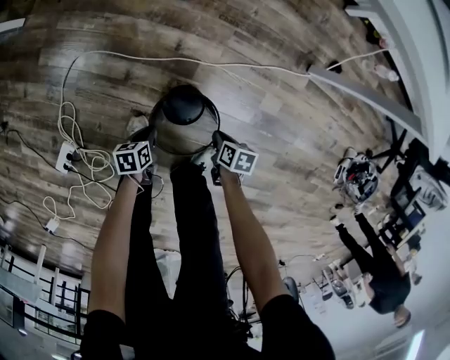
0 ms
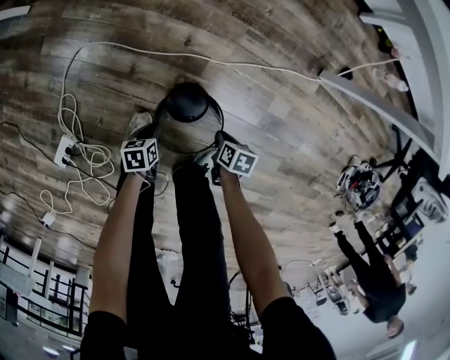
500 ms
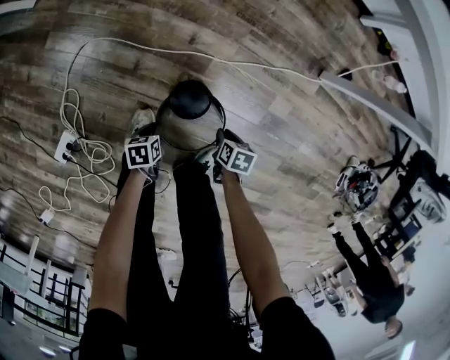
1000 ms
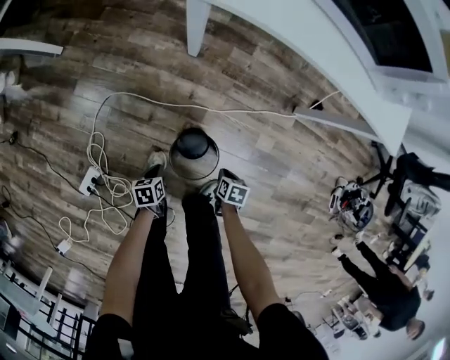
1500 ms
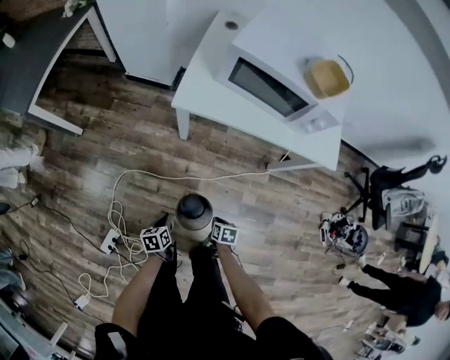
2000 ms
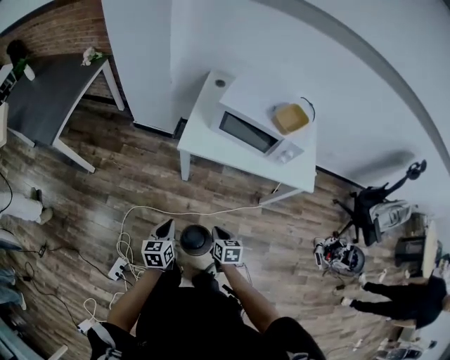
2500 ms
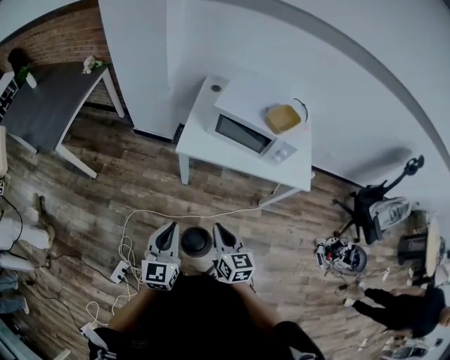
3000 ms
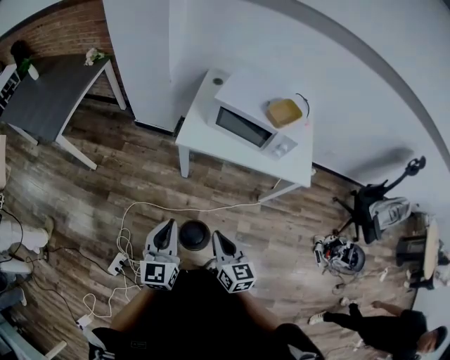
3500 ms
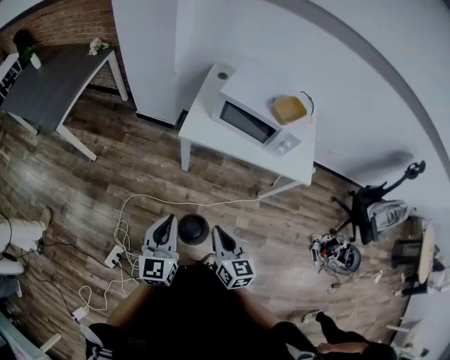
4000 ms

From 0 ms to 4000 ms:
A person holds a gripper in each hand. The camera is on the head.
From 0 ms to 2000 ms: The two grippers go about 35 cm upward.
From 2000 ms to 4000 ms: The two grippers go about 40 cm upward. The right gripper angles its fingers upward, by approximately 50 degrees. The left gripper angles its fingers upward, by about 40 degrees.

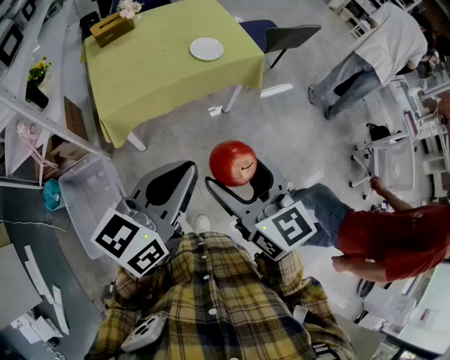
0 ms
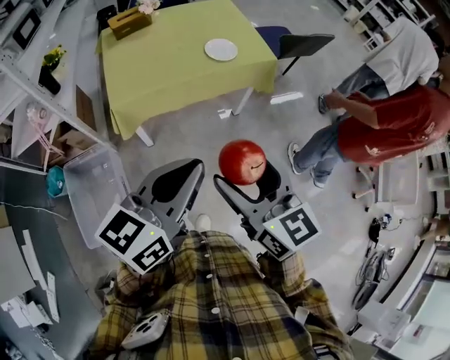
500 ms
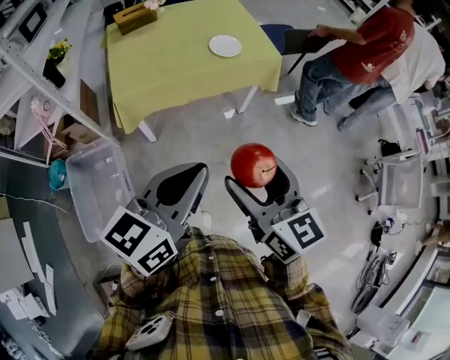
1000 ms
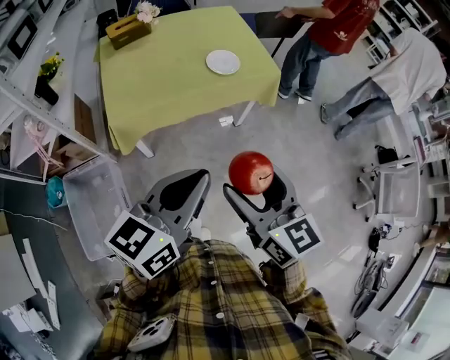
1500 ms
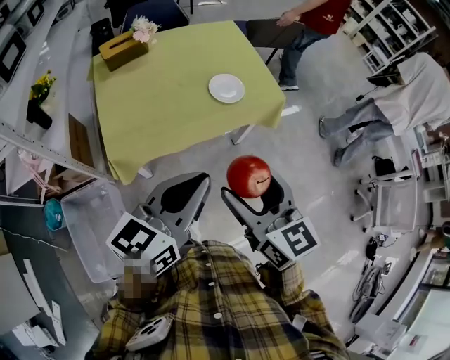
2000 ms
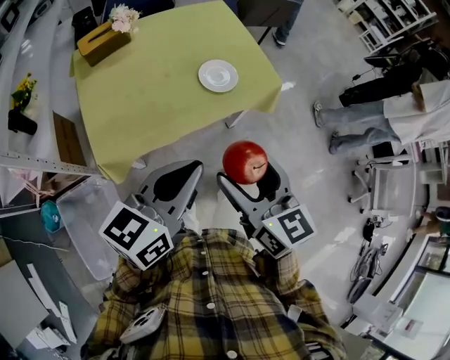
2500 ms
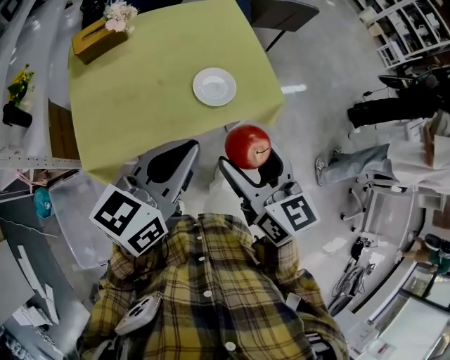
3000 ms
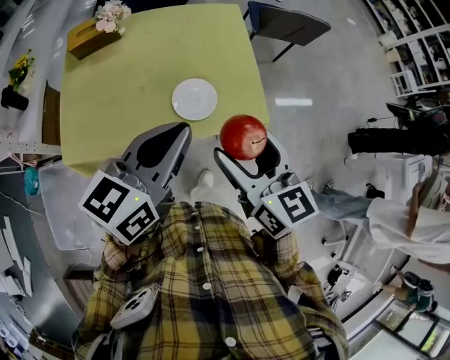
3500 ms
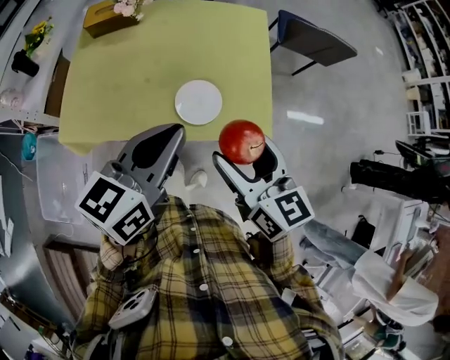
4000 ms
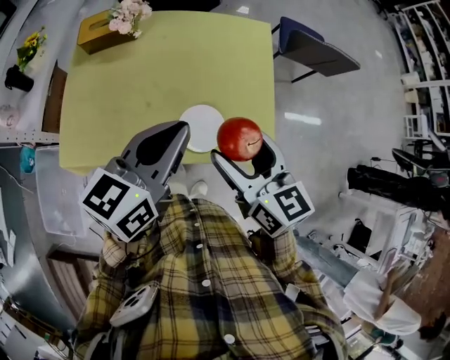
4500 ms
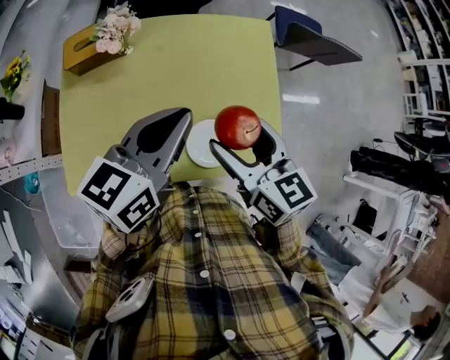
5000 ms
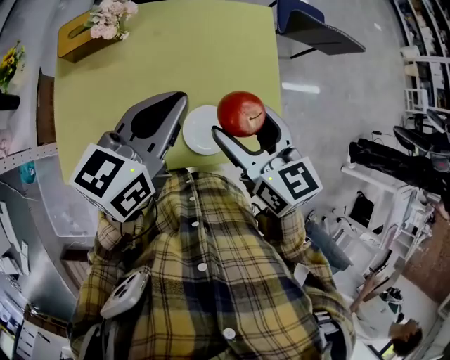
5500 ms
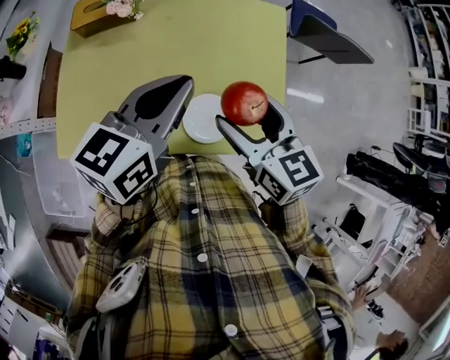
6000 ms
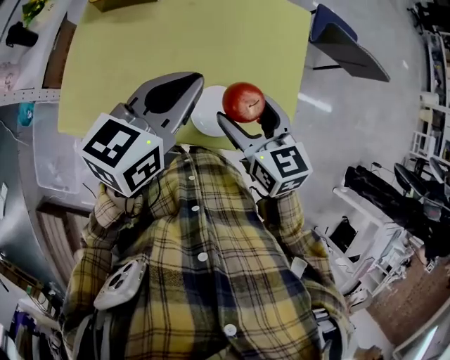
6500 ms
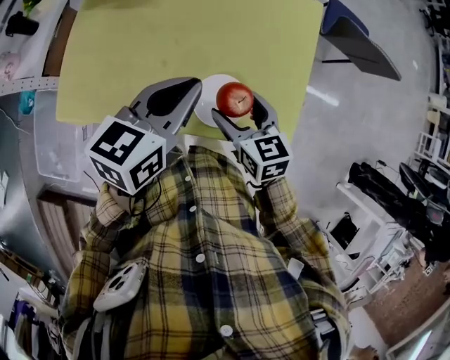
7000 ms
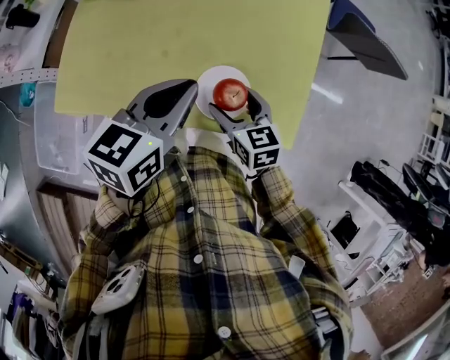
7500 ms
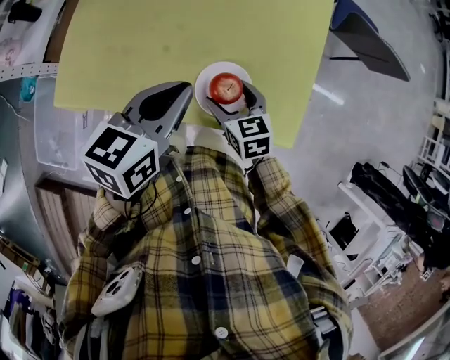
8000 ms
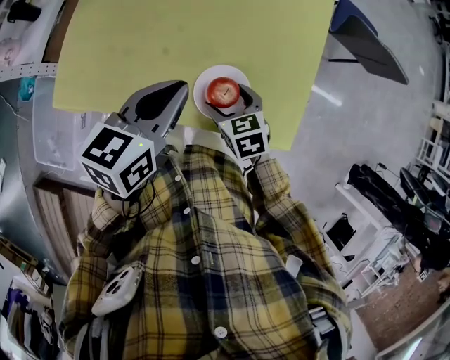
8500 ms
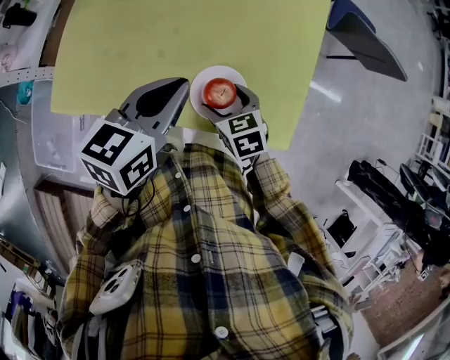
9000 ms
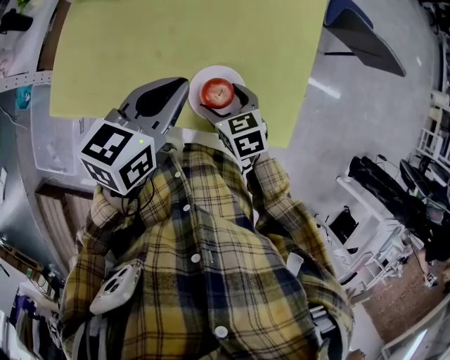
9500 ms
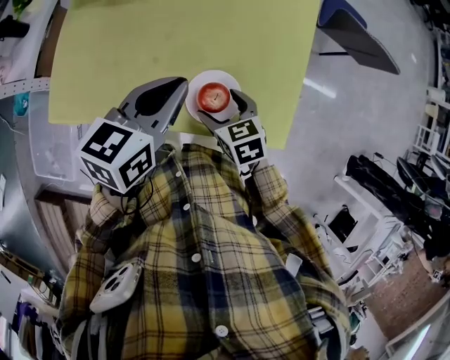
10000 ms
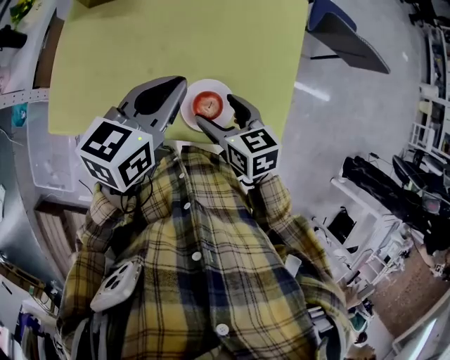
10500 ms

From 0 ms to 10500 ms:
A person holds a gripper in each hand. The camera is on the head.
From 0 ms to 2000 ms: The two grippers go approximately 15 cm forward.
From 2000 ms to 4000 ms: The left gripper ends up about 35 cm from where it was, and turns by some 30 degrees. The right gripper ends up some 35 cm from where it was, and turns by some 20 degrees.
From 4000 ms to 6500 ms: The left gripper goes about 20 cm forward. The right gripper travels forward and downward by some 20 cm.
From 6500 ms to 8500 ms: The right gripper moves downward, some 20 cm, and changes its angle by some 20 degrees, while the left gripper goes roughly 10 cm downward.
From 8500 ms to 10500 ms: The right gripper heads upward, covering roughly 10 cm. Meanwhile the left gripper shifts by roughly 5 cm.

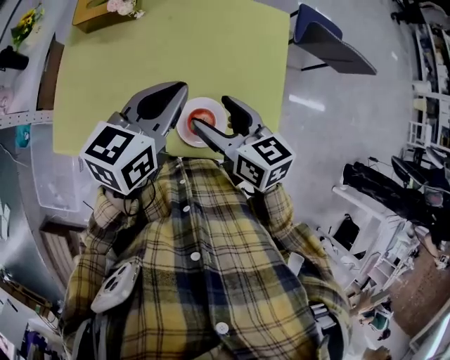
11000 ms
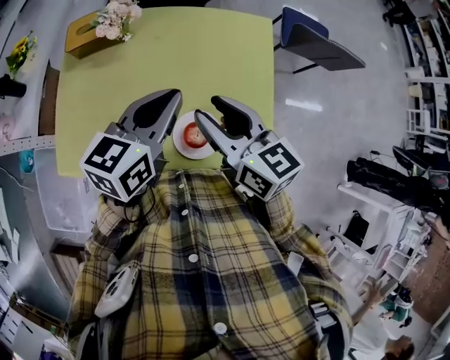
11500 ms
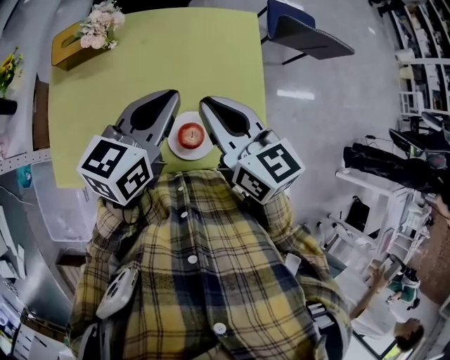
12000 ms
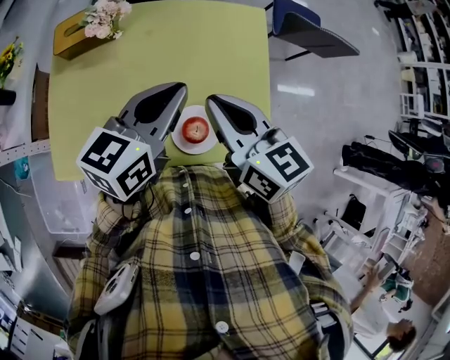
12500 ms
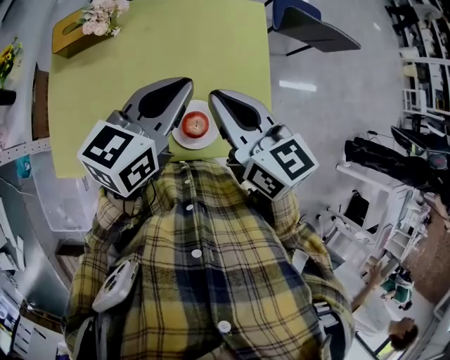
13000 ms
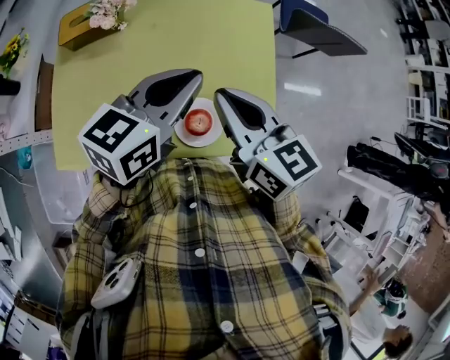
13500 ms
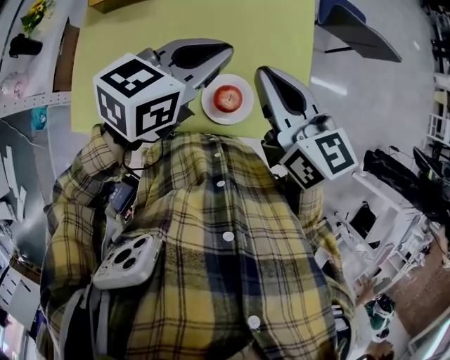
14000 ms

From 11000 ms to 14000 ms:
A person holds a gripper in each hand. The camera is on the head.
From 11000 ms to 12500 ms: The right gripper travels upward by about 10 cm, and closes its fingers.
From 12500 ms to 14000 ms: There are only small adjustments of the grippers.

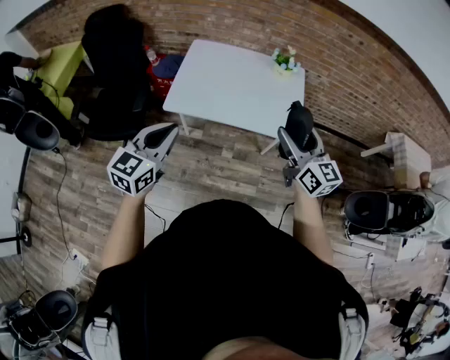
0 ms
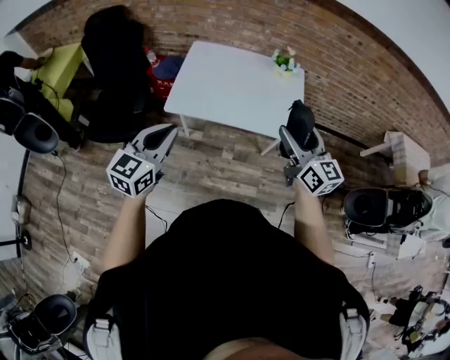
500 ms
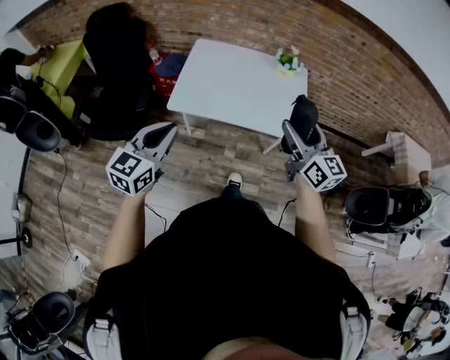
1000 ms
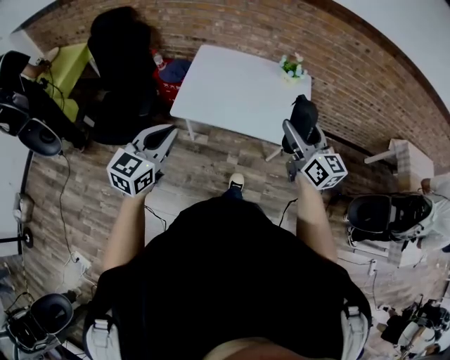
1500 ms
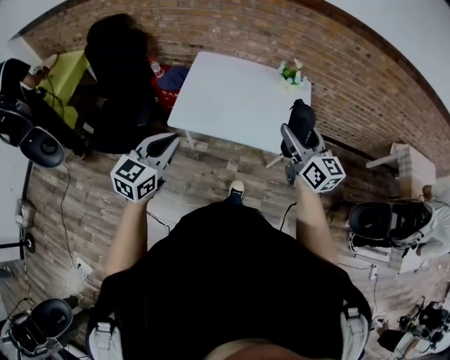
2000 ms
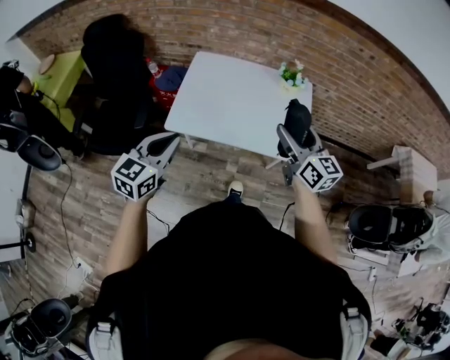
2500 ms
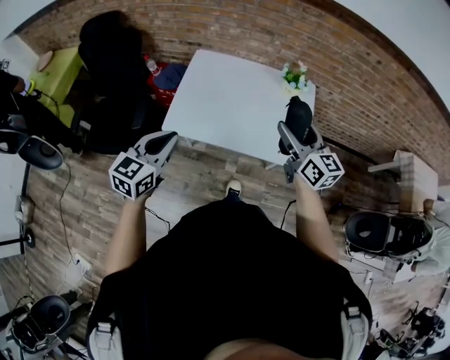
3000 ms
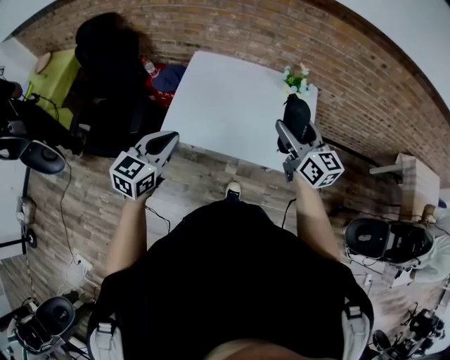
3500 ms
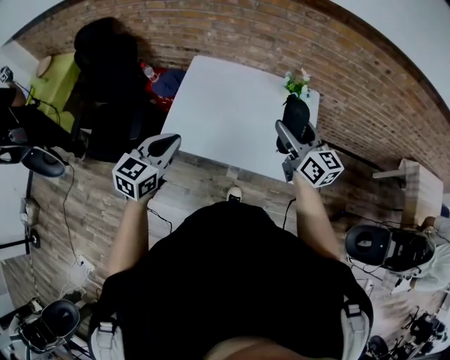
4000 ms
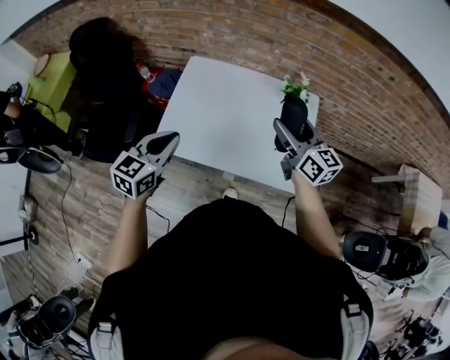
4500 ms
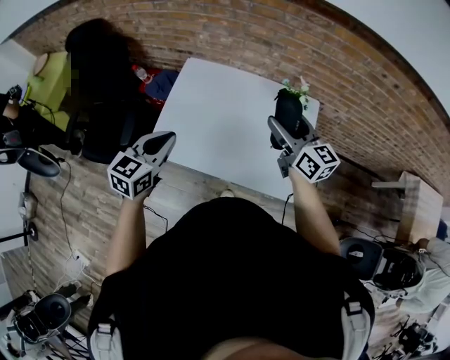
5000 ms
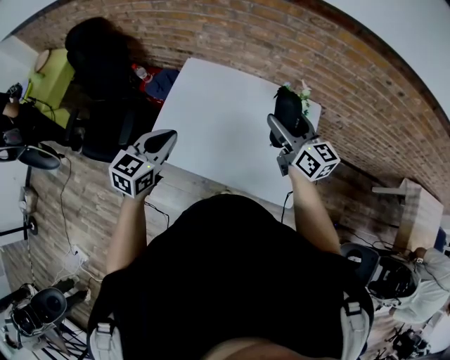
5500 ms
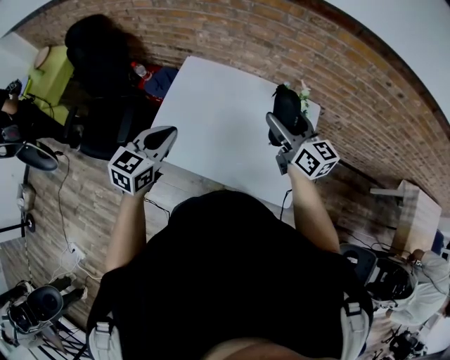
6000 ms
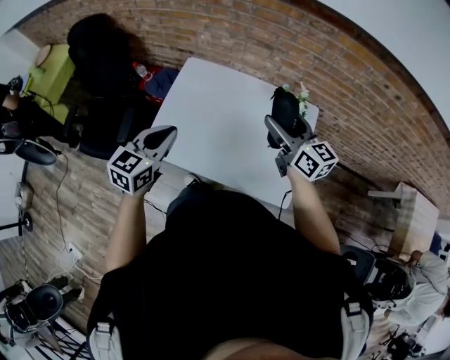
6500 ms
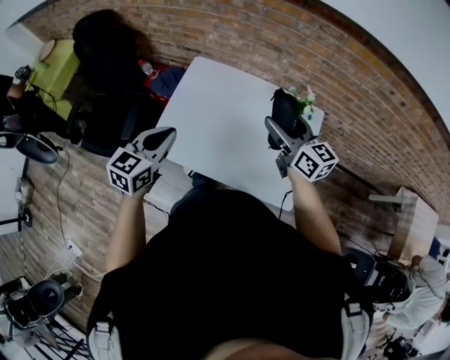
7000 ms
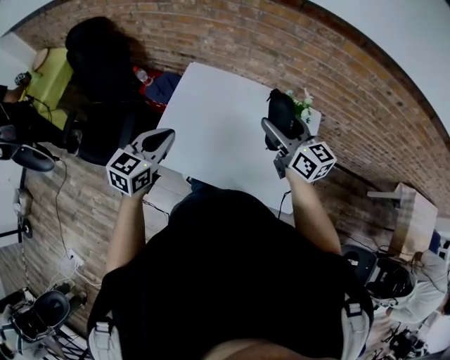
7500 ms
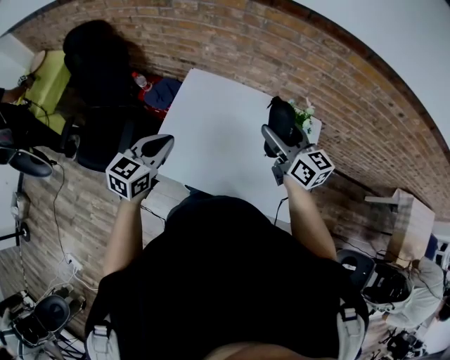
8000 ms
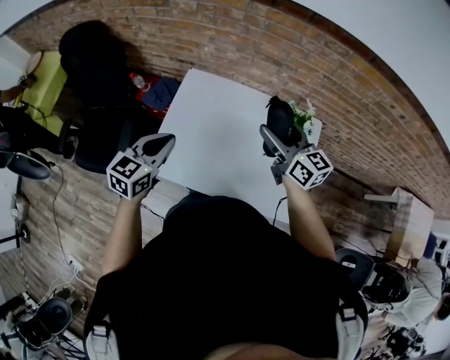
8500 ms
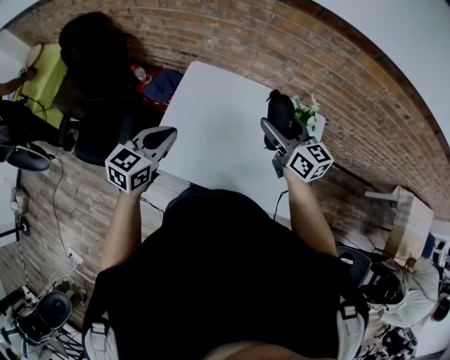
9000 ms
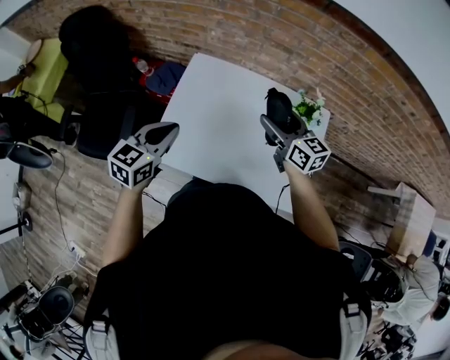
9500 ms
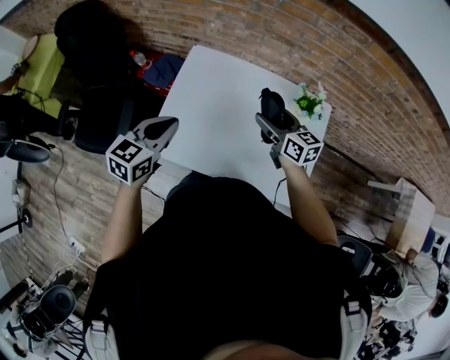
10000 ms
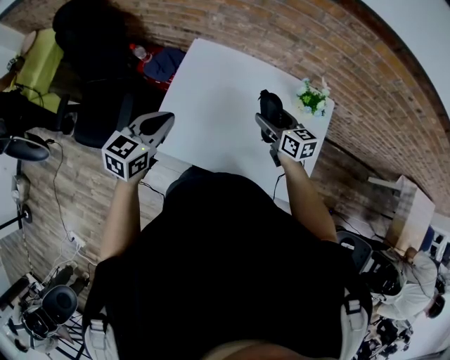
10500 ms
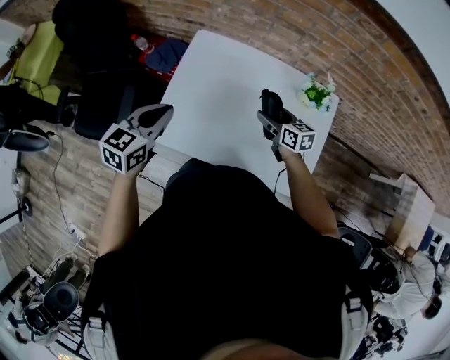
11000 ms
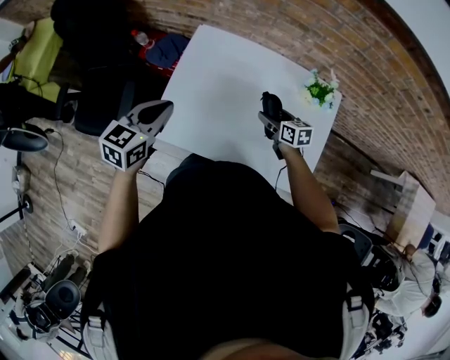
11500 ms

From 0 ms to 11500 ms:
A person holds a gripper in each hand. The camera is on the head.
From 0 ms to 2000 ms: The left gripper goes some 5 cm forward. Meanwhile the right gripper goes approximately 10 cm forward.
From 2000 ms to 4000 ms: Both grippers move forward, approximately 20 cm.
From 4000 ms to 6000 ms: The right gripper is displaced forward by about 15 cm. Meanwhile the left gripper is displaced forward and to the right by some 15 cm.
From 6000 ms to 7500 ms: The right gripper travels to the left by approximately 5 cm; the left gripper shifts by about 5 cm.
From 7500 ms to 9500 ms: The right gripper travels downward and forward by about 10 cm. Meanwhile the left gripper heads forward, covering roughly 5 cm.
From 9500 ms to 11500 ms: The left gripper changes place by roughly 5 cm. Meanwhile the right gripper shifts approximately 20 cm downward, and turns by approximately 30 degrees.
